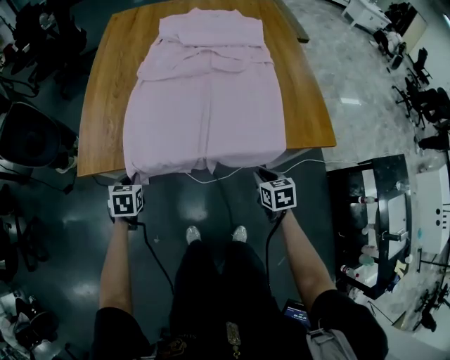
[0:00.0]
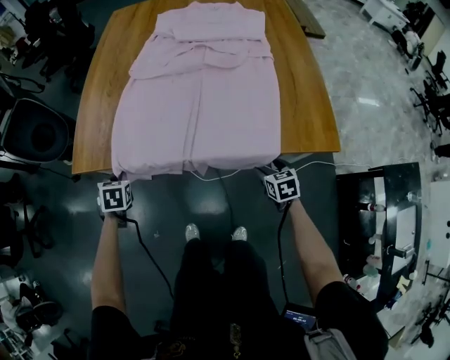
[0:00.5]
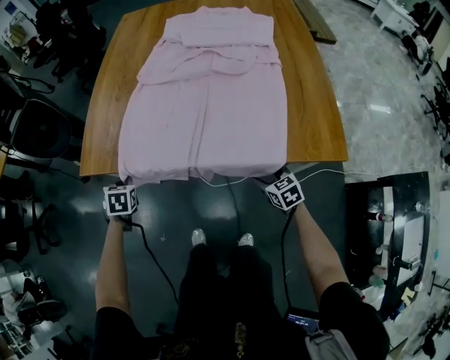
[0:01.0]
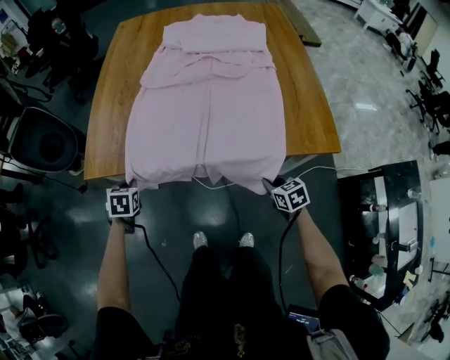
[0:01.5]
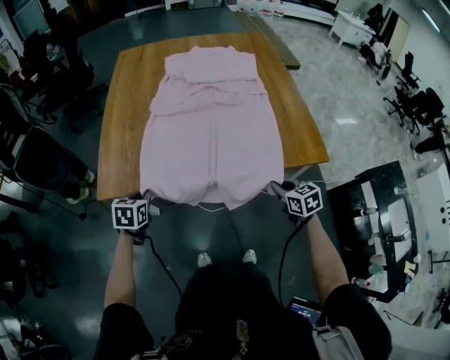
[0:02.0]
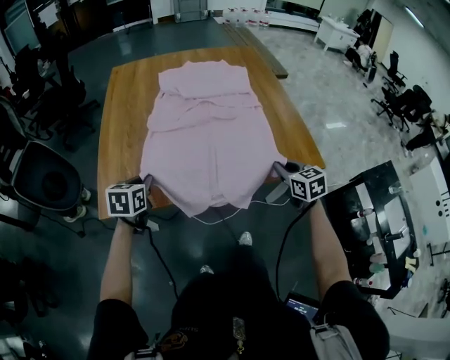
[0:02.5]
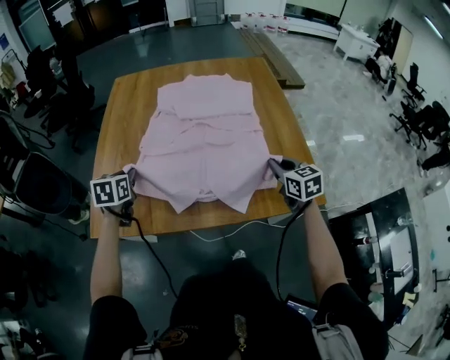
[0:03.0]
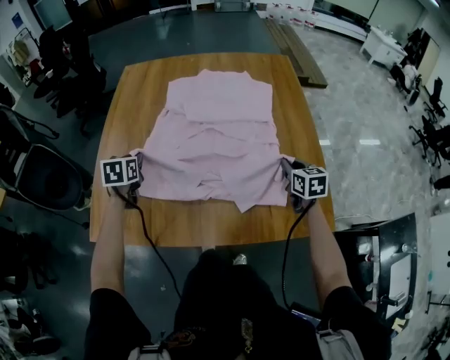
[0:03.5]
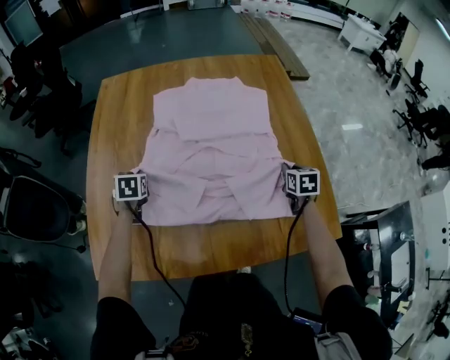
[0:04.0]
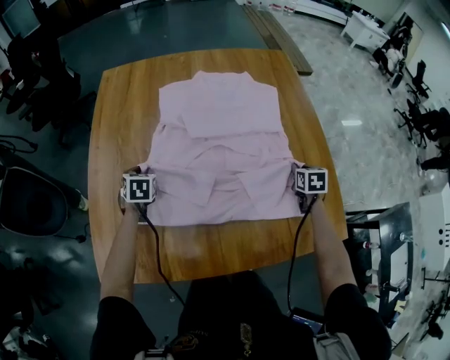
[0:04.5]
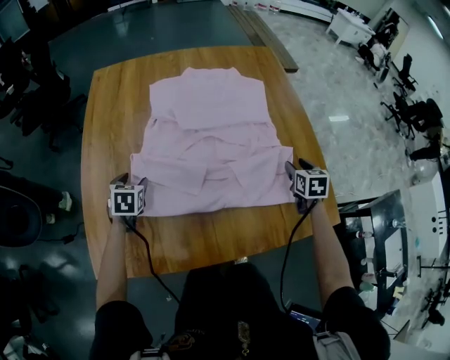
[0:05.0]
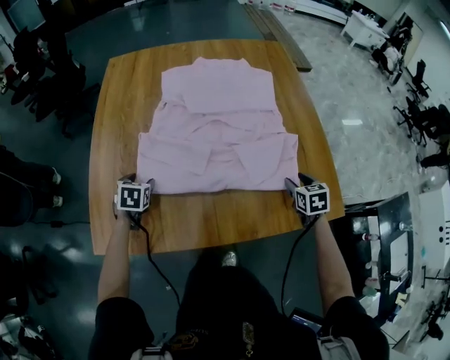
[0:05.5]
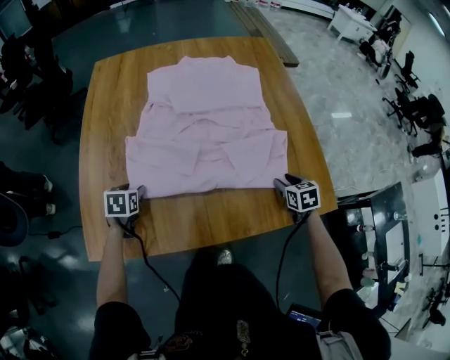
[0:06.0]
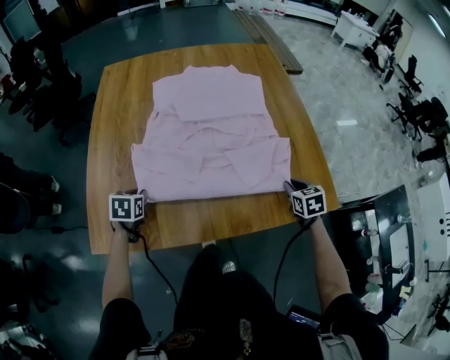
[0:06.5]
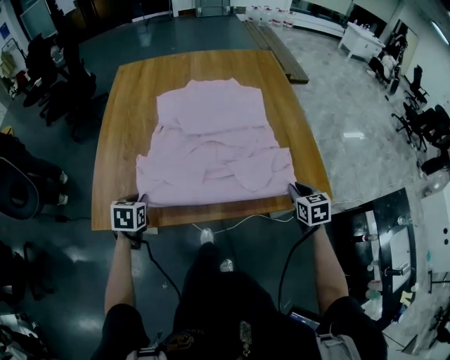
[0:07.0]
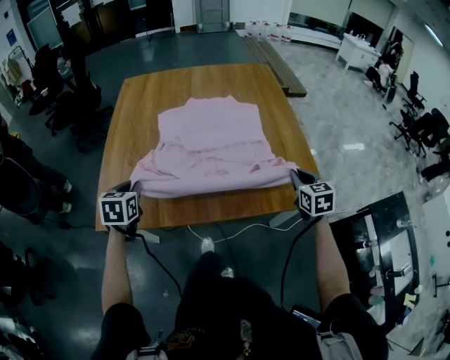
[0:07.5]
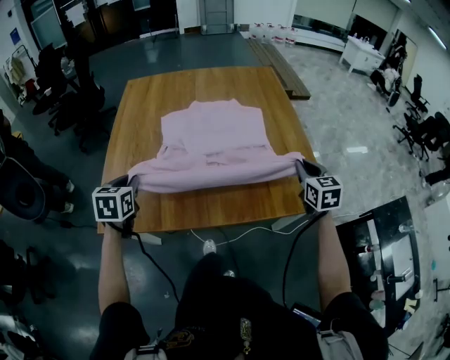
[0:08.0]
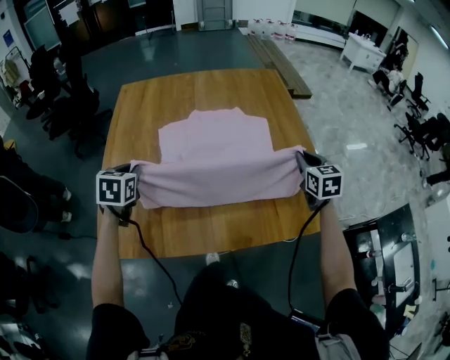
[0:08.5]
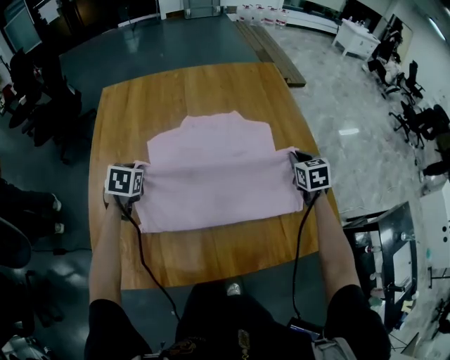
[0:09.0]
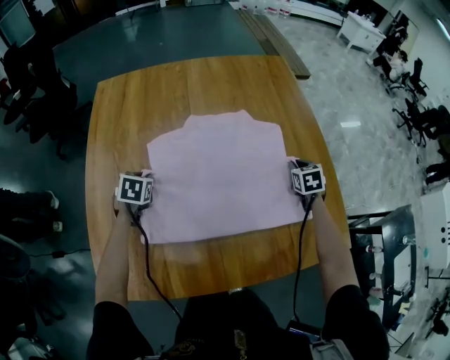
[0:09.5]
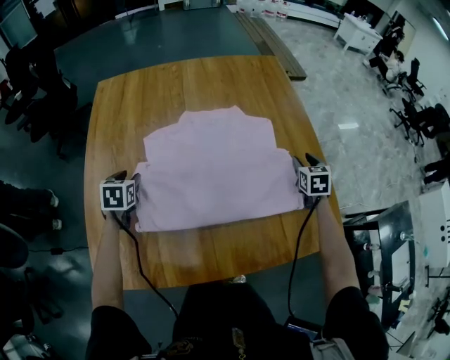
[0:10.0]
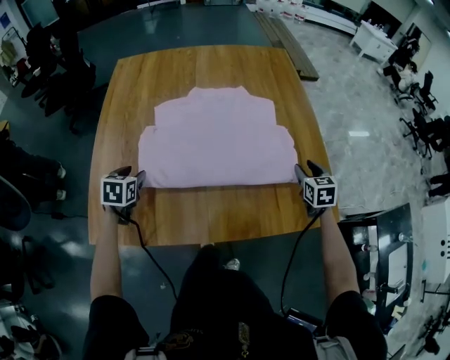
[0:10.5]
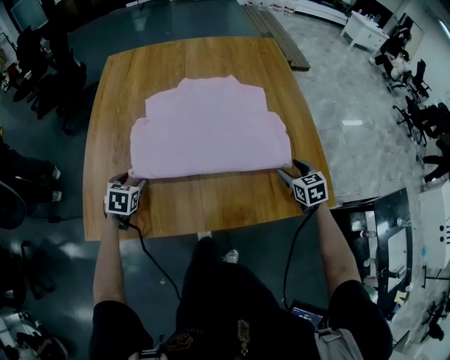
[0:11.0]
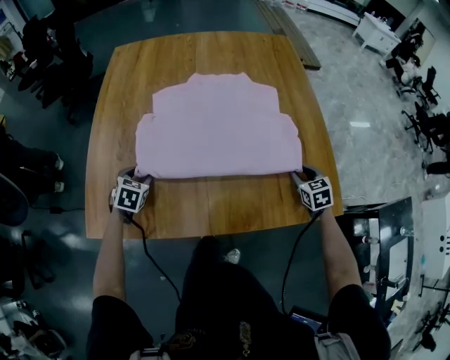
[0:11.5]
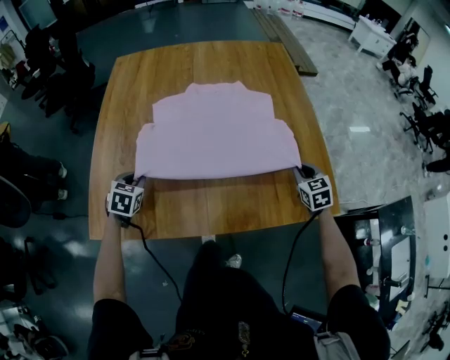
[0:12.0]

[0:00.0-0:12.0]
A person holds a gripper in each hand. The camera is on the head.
0:00.0 to 0:02.0: Both grippers move upward, roughly 10 cm. The right gripper opens and closes again.
0:02.0 to 0:04.0: Both grippers are carried forward, about 40 cm. The right gripper turns by about 20 degrees.
0:04.0 to 0:06.0: Both grippers move backward, roughly 15 cm. The left gripper opens up. The right gripper opens its fingers.
0:06.0 to 0:08.0: The right gripper goes about 20 cm upward, turns by roughly 30 degrees, and closes, while the left gripper goes about 25 cm upward and backward, changes its angle by some 20 degrees, and closes its fingers.
0:08.0 to 0:10.0: The grippers both shift forward and downward by roughly 30 cm. The left gripper opens up. The right gripper rotates roughly 20 degrees, and opens.
0:10.0 to 0:12.0: Both grippers travel together backward, some 15 cm. The left gripper closes. Meanwhile the right gripper rotates some 20 degrees, and closes up.

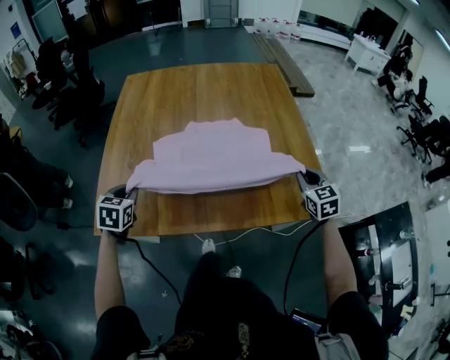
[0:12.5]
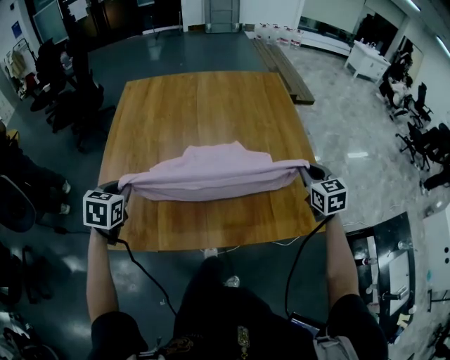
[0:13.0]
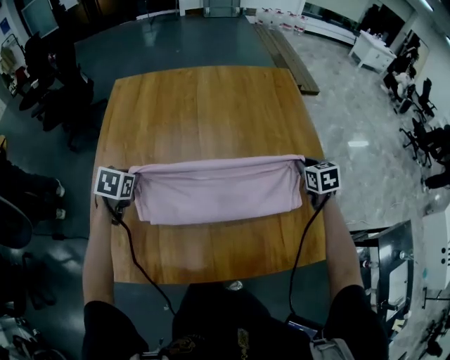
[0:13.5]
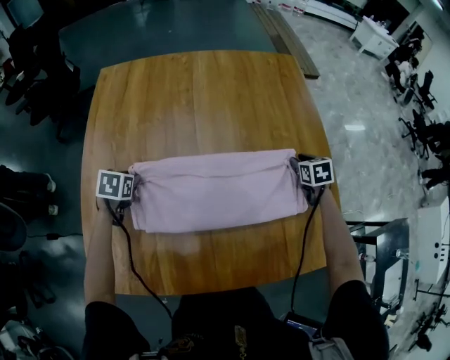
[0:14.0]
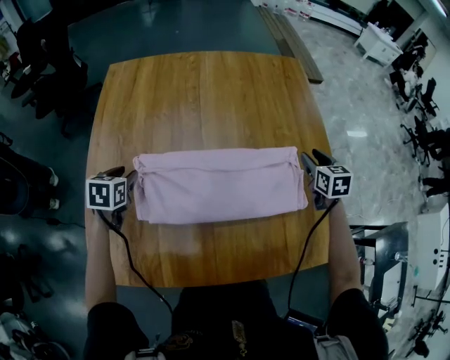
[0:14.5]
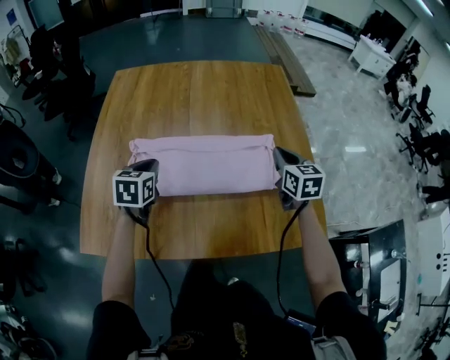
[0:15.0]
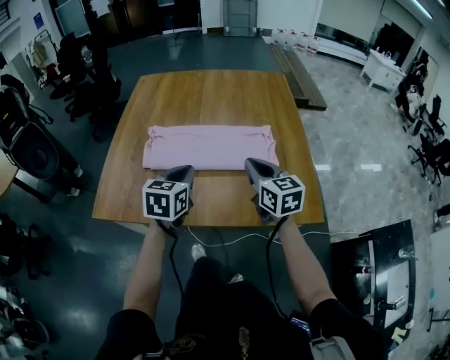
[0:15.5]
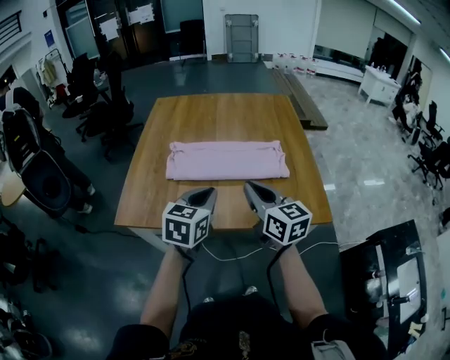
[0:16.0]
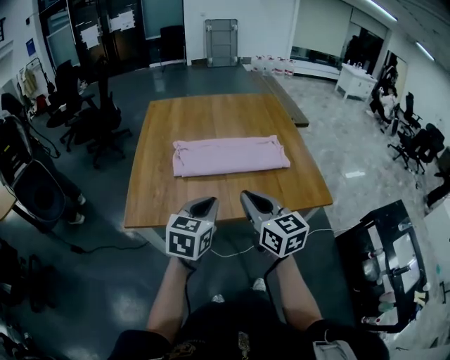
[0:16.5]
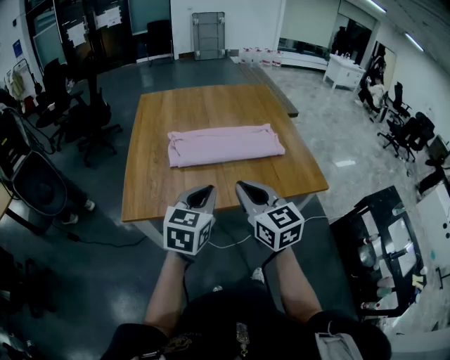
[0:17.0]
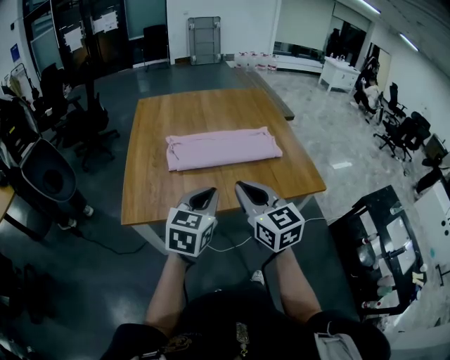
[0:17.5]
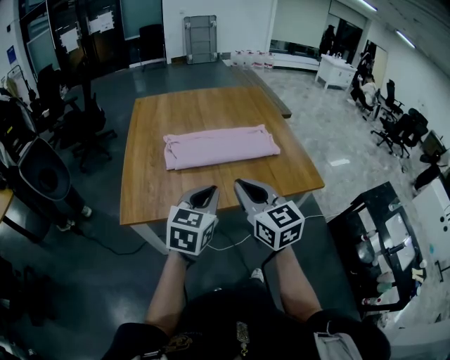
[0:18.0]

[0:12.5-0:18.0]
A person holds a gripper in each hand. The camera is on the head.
0:12.5 to 0:14.5: The grippers both shift forward by about 25 cm. The left gripper opens up; the right gripper opens.
0:14.5 to 0:16.0: The right gripper moves backward, to the left and upward, about 50 cm, tilts its fingers roughly 30 degrees upward, and closes up. Meanwhile the left gripper travels backward, to the right and upward by some 50 cm, swivels about 30 degrees, and closes its fingers.
0:16.0 to 0:18.0: The right gripper heads to the left and backward, covering roughly 15 cm. Meanwhile the left gripper heads backward and to the left, covering some 10 cm.

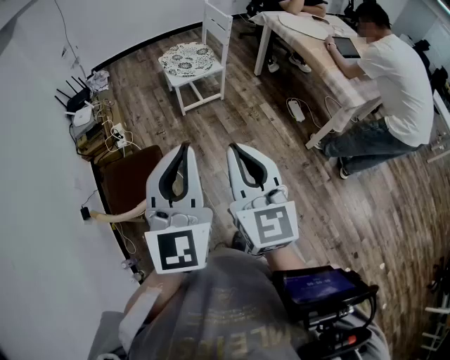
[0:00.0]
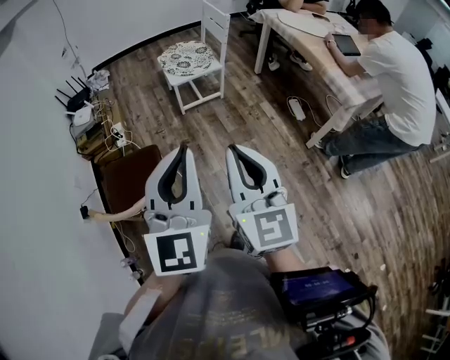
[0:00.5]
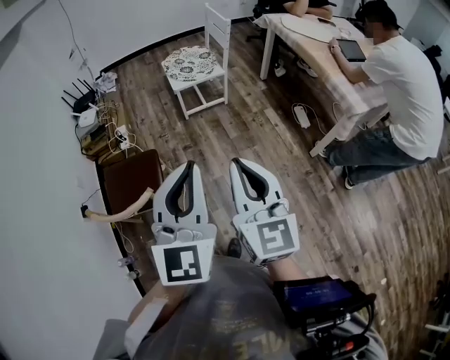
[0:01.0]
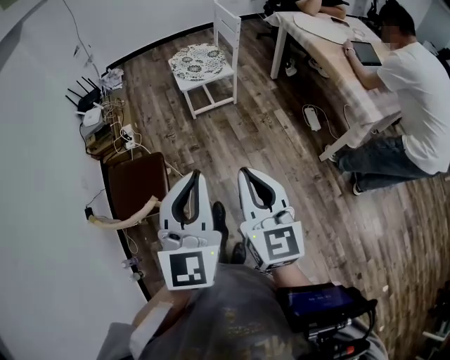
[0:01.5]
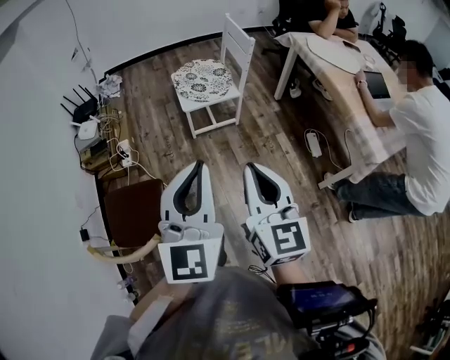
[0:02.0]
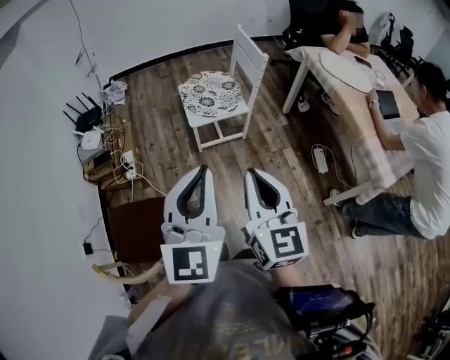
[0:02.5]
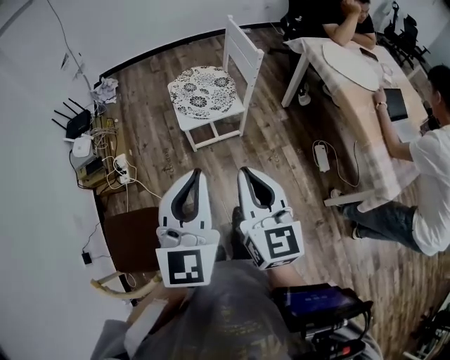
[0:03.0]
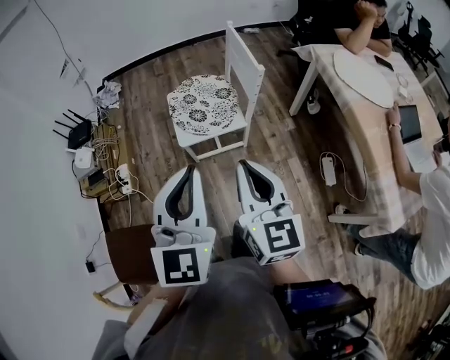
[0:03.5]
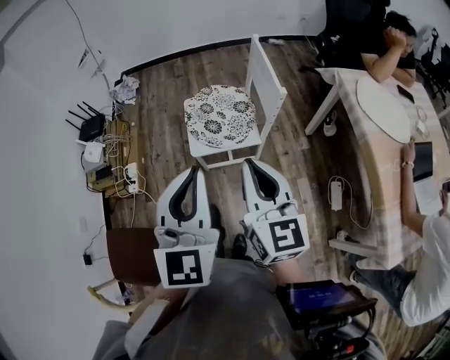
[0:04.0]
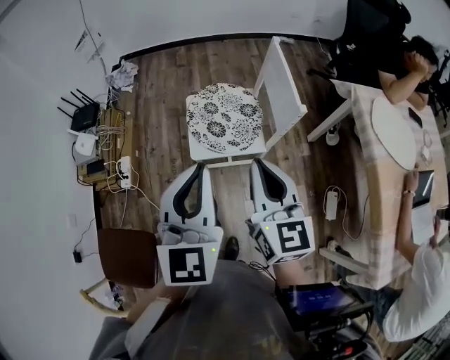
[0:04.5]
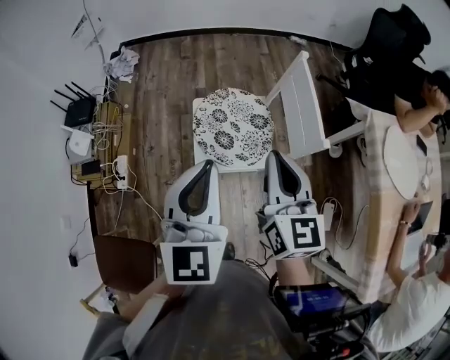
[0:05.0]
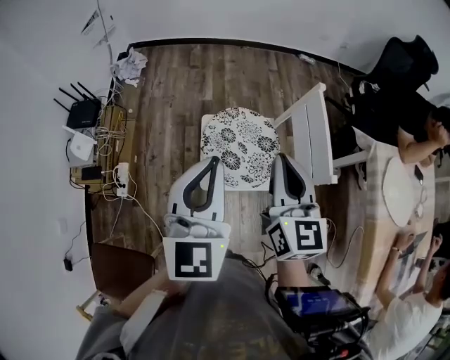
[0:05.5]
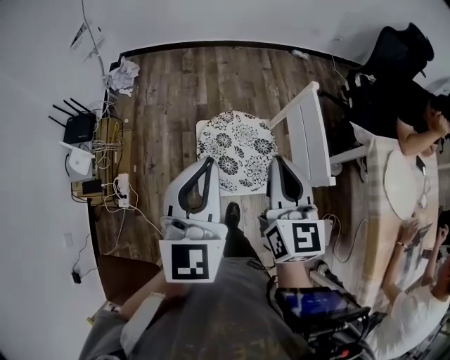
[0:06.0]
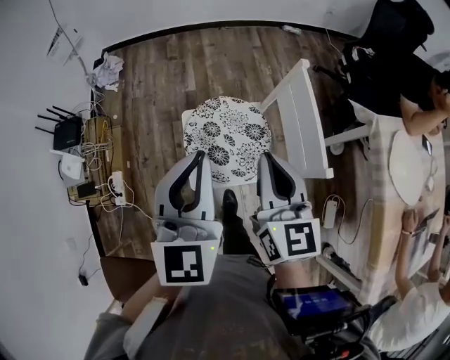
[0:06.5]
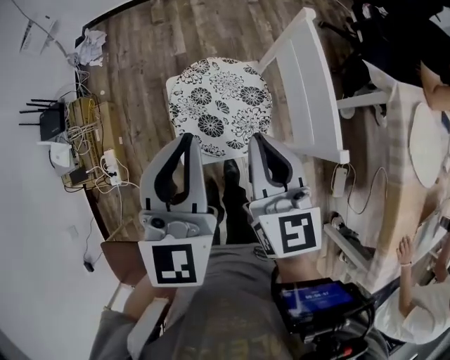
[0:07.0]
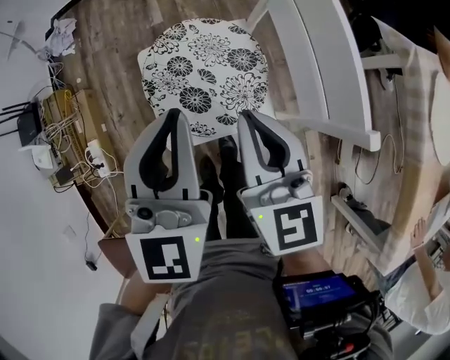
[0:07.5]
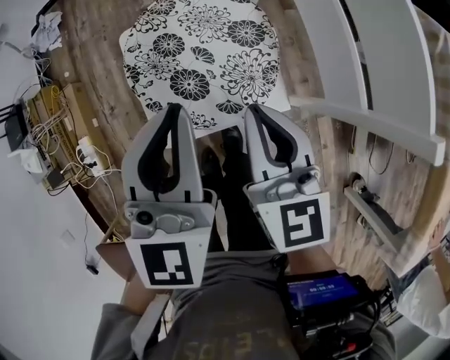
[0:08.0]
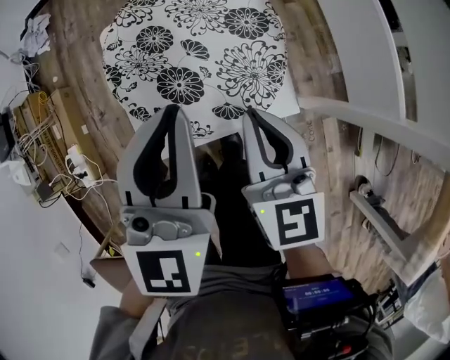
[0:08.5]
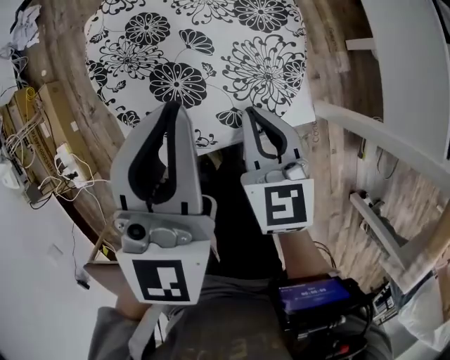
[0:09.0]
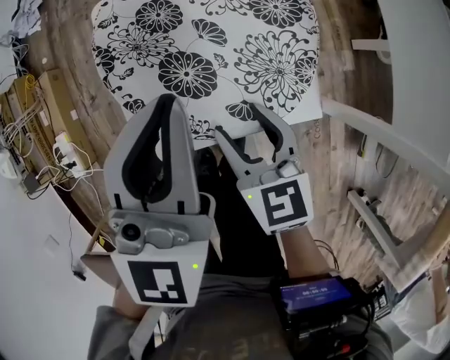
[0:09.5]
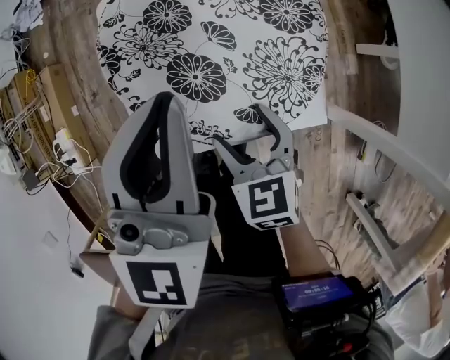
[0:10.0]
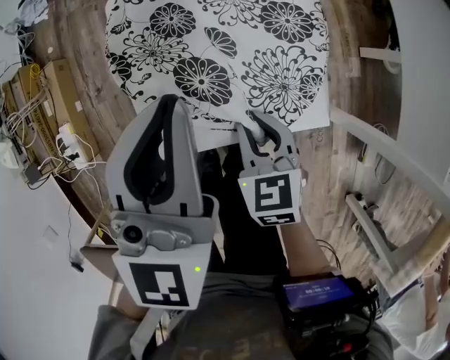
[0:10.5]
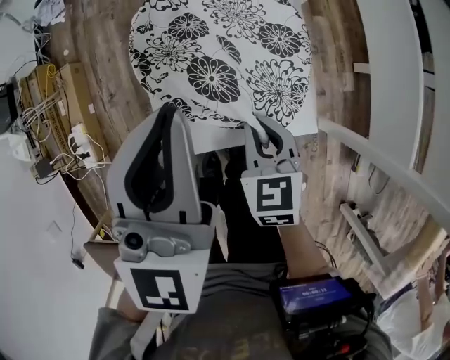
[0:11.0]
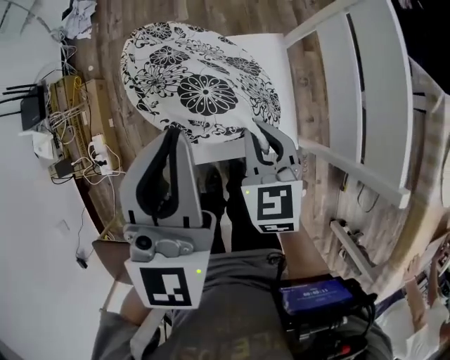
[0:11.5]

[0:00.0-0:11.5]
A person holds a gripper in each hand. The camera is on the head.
0:00.0 to 0:02.0: The two grippers go roughly 20 cm forward.
0:02.0 to 0:04.0: Both grippers travel together forward, roughly 35 cm.
0:04.0 to 0:06.0: Both grippers move forward, some 30 cm.
0:06.0 to 0:07.5: The left gripper heads downward and to the right, covering some 20 cm, while the right gripper moves downward, about 20 cm.
0:07.5 to 0:09.5: The right gripper is displaced downward by about 30 cm, turns by roughly 20 degrees, and opens its fingers. The left gripper moves downward, about 20 cm.
0:09.5 to 0:11.5: The right gripper ends up some 5 cm from where it was, and closes its fingers, while the left gripper shifts some 10 cm backward.
